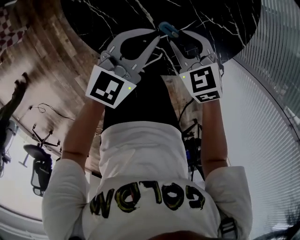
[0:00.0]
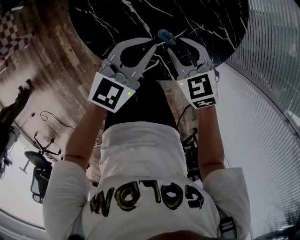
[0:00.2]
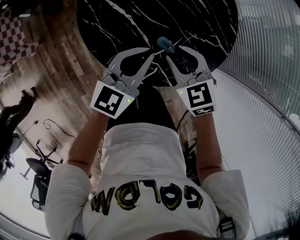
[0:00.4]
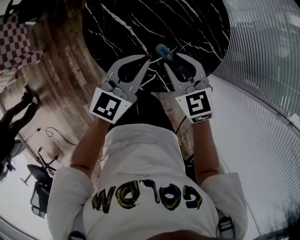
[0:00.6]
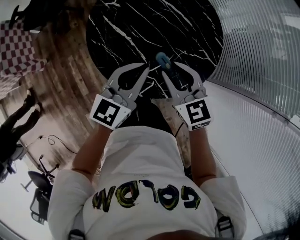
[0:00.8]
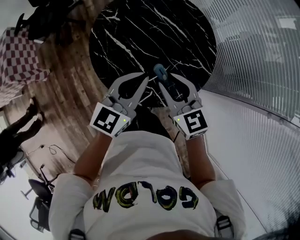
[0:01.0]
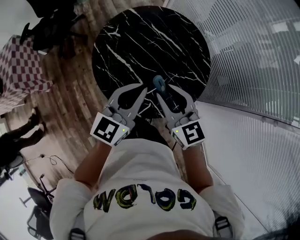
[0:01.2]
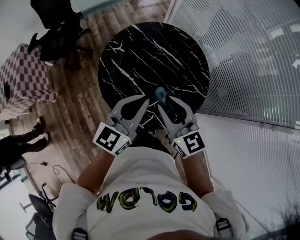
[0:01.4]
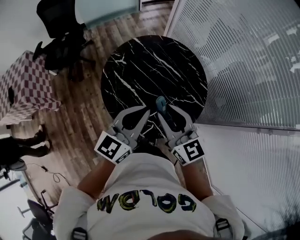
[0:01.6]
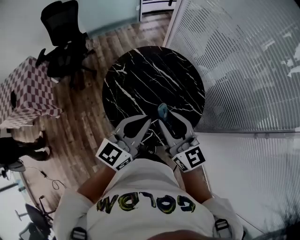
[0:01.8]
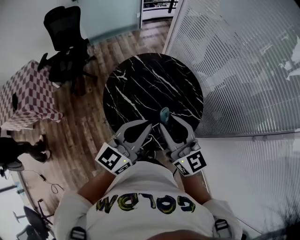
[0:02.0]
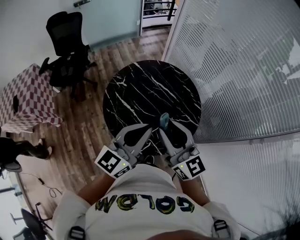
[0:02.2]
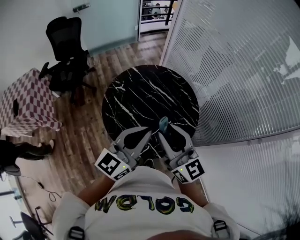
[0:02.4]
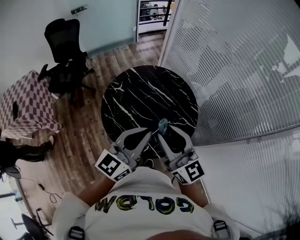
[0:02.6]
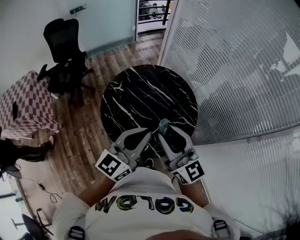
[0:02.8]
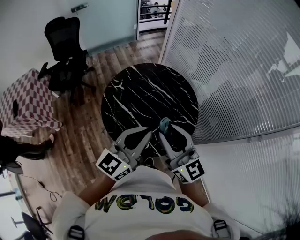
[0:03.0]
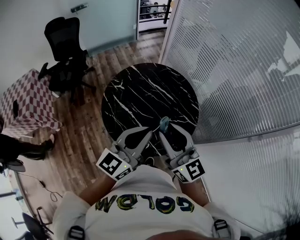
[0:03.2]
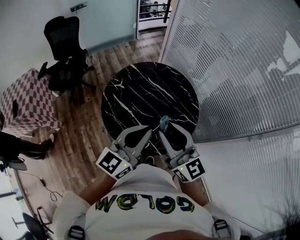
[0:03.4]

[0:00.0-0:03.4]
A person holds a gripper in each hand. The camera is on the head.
0:00.0 to 0:01.6: The two grippers go some 35 cm upward. The right gripper tips its fingers upward by roughly 50 degrees.
0:01.6 to 0:03.4: The two grippers go some 10 cm upward.

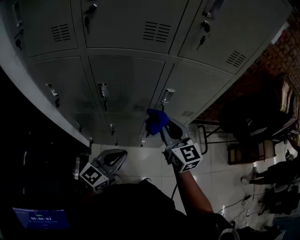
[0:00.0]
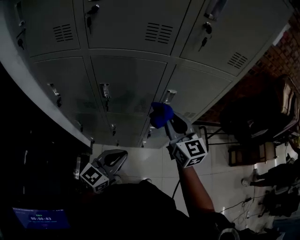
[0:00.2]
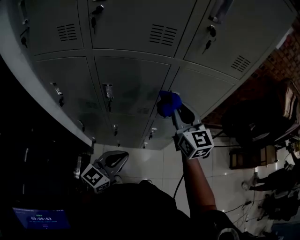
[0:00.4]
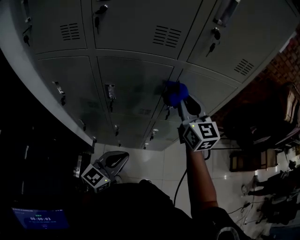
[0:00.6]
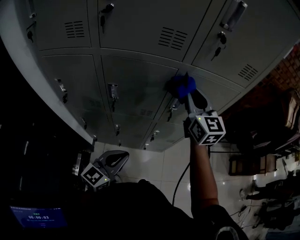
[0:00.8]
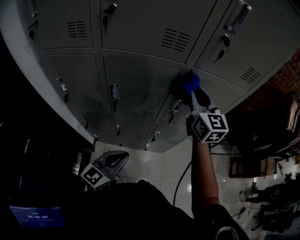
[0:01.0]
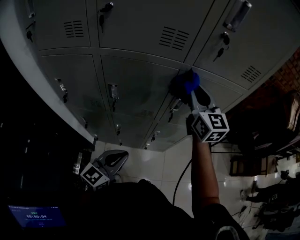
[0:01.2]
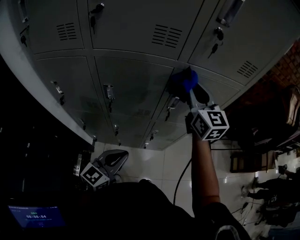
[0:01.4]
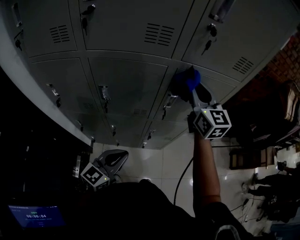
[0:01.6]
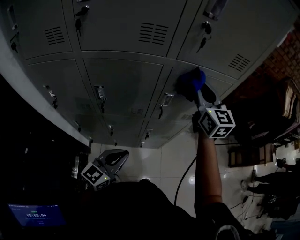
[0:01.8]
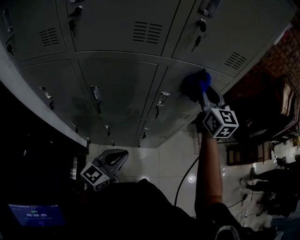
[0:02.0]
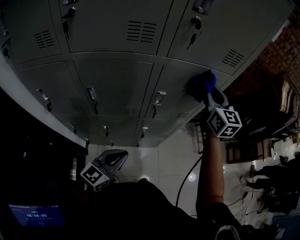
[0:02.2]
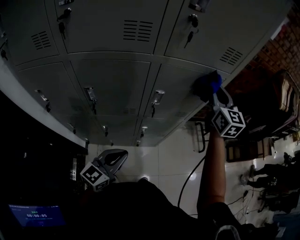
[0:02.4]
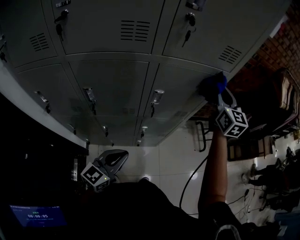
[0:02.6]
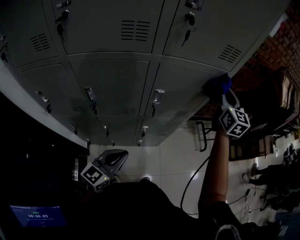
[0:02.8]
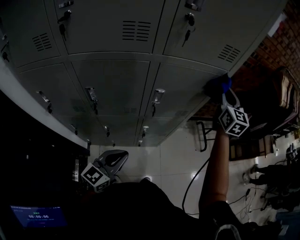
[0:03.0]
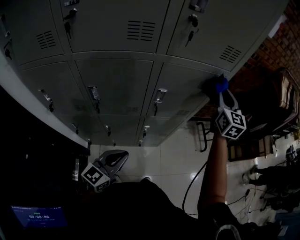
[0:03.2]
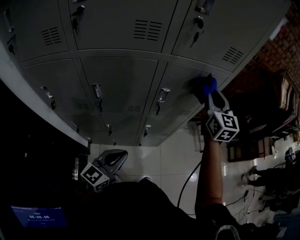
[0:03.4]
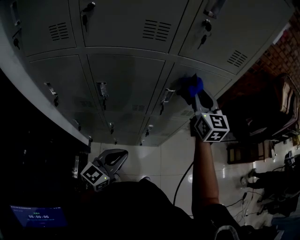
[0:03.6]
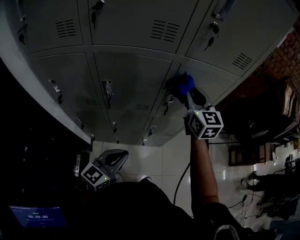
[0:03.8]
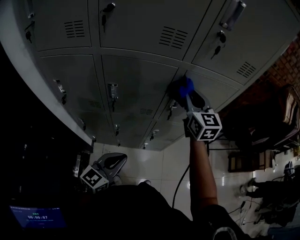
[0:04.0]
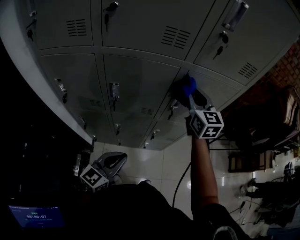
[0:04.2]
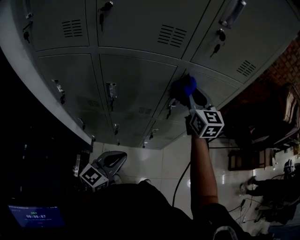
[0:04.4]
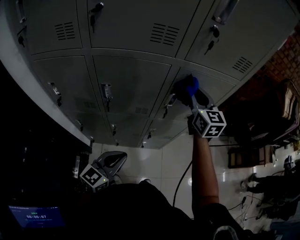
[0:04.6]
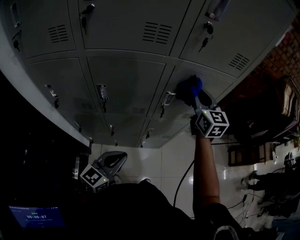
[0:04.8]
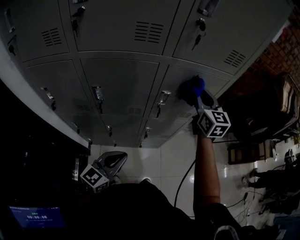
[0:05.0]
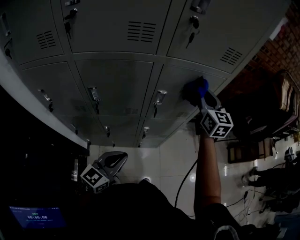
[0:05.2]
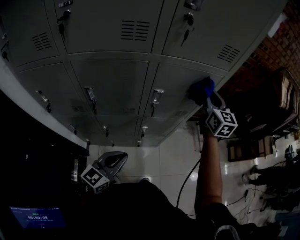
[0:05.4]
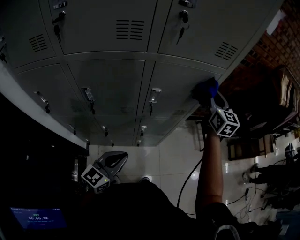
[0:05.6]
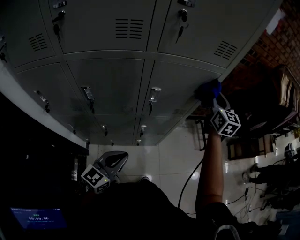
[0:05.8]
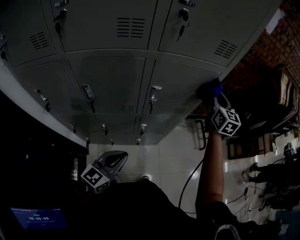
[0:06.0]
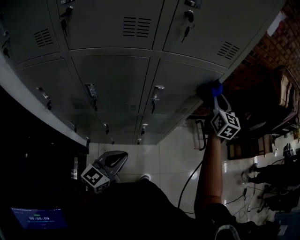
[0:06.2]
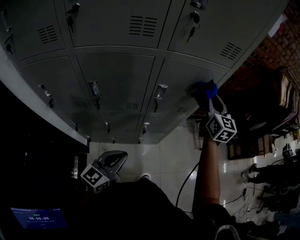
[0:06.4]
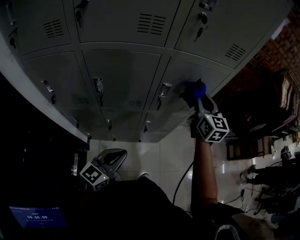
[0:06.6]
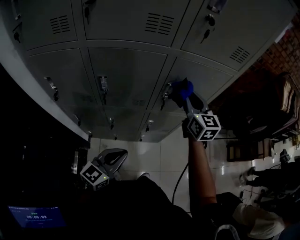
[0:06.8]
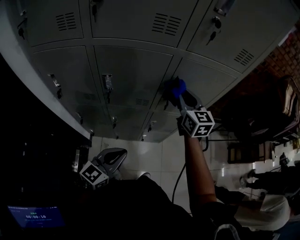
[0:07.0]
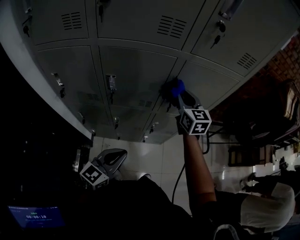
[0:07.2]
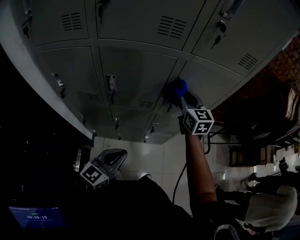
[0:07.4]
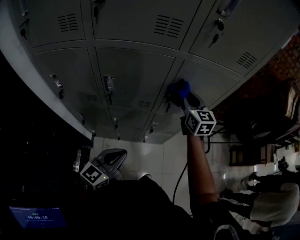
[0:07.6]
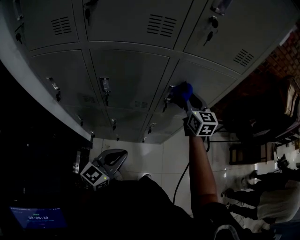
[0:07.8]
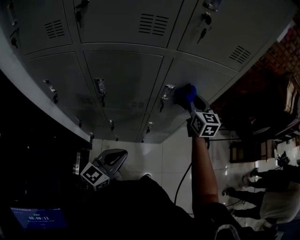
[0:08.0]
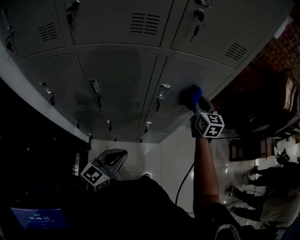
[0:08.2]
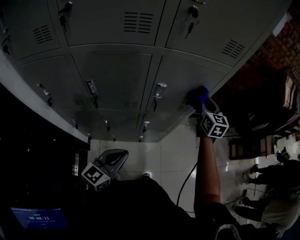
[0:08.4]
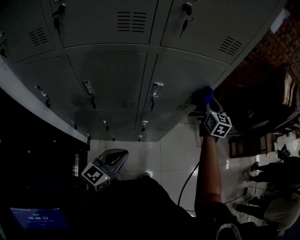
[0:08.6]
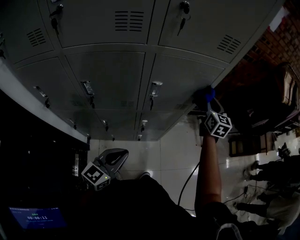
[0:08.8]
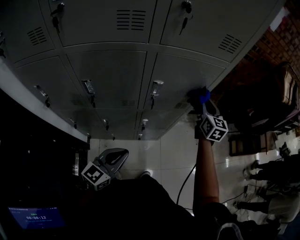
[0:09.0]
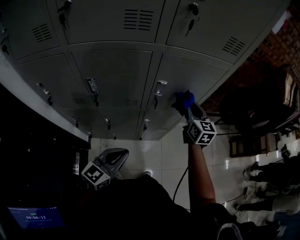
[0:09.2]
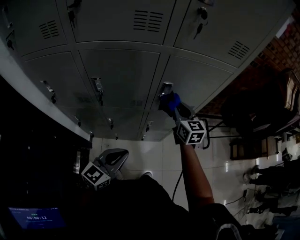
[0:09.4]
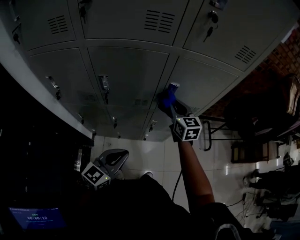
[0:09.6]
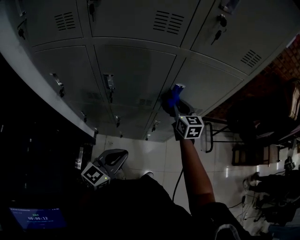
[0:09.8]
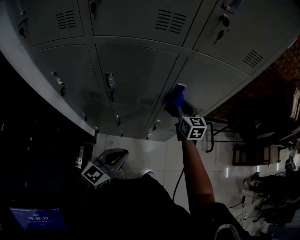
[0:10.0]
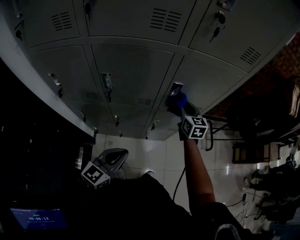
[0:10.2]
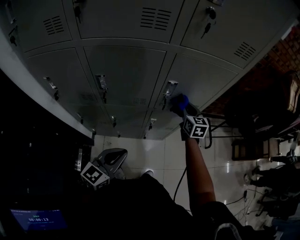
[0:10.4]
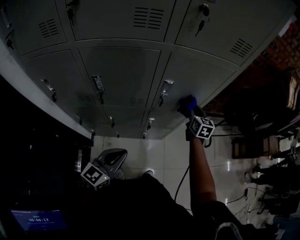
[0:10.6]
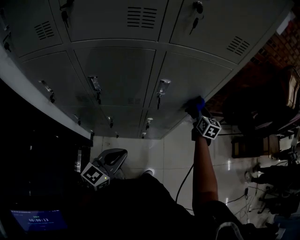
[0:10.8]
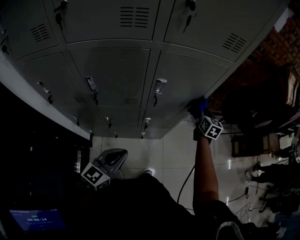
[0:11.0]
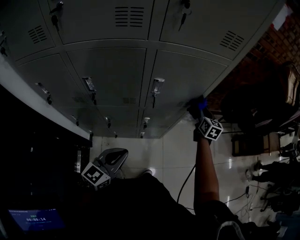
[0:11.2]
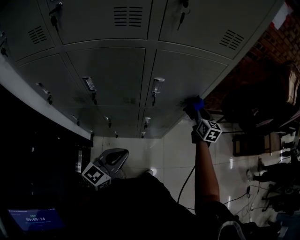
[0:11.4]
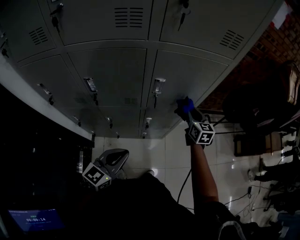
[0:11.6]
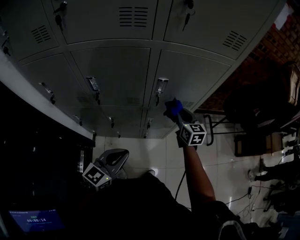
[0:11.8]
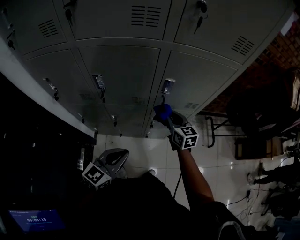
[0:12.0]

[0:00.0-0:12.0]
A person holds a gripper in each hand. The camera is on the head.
0:00.0 to 0:01.6: The right gripper shifts approximately 20 cm forward and upward.
0:01.6 to 0:03.0: The right gripper goes approximately 20 cm to the right, and swivels approximately 20 degrees.
0:03.0 to 0:04.4: The right gripper shifts some 20 cm to the left, and changes its angle by roughly 20 degrees. The left gripper is displaced to the left by approximately 5 cm.
0:04.4 to 0:06.0: The left gripper moves to the right, approximately 5 cm. The right gripper shifts roughly 20 cm to the right, and swivels about 20 degrees.
0:06.0 to 0:07.6: The right gripper moves to the left, some 20 cm, and turns by some 20 degrees; the left gripper is displaced to the left by roughly 5 cm.
0:07.6 to 0:09.0: The left gripper travels to the right by roughly 5 cm. The right gripper moves to the right, approximately 20 cm.
0:09.0 to 0:10.4: The right gripper heads to the left and downward, covering about 15 cm.
0:10.4 to 0:12.0: The right gripper goes about 10 cm backward, and moves some 15 cm to the right and comes back.

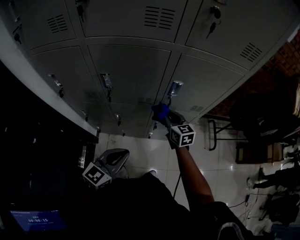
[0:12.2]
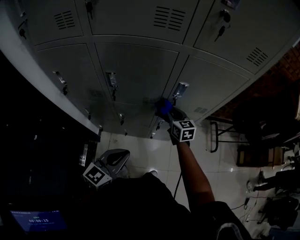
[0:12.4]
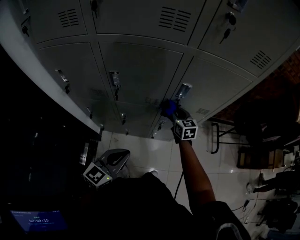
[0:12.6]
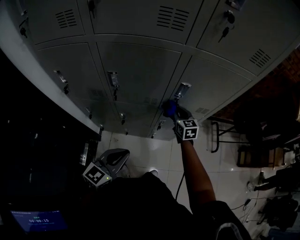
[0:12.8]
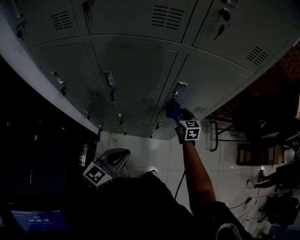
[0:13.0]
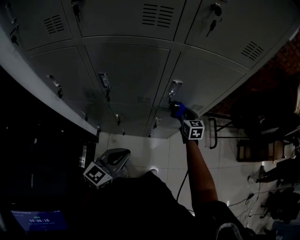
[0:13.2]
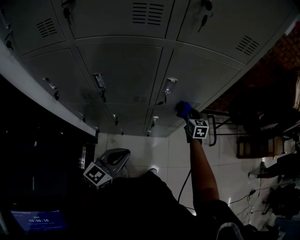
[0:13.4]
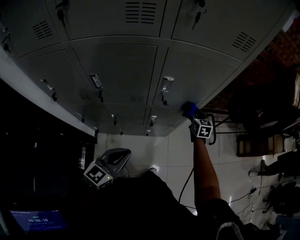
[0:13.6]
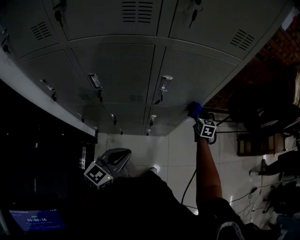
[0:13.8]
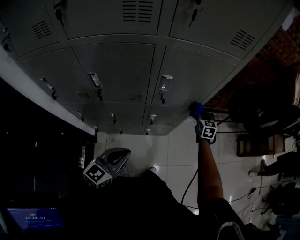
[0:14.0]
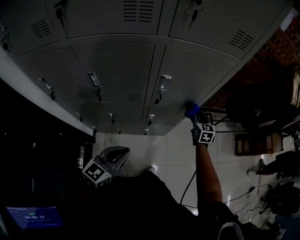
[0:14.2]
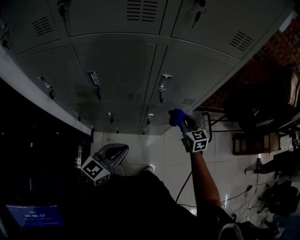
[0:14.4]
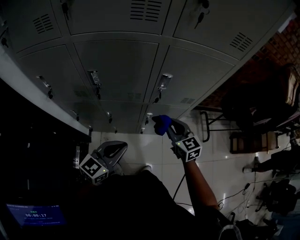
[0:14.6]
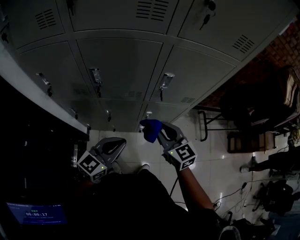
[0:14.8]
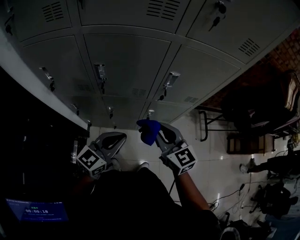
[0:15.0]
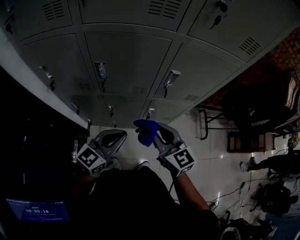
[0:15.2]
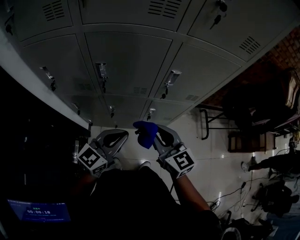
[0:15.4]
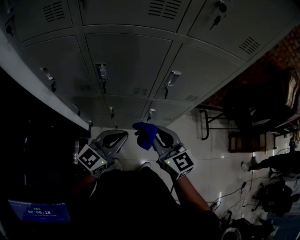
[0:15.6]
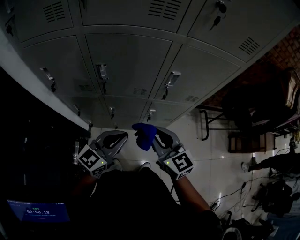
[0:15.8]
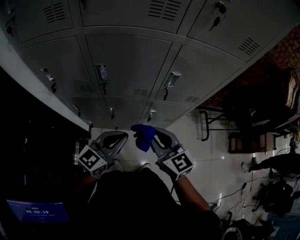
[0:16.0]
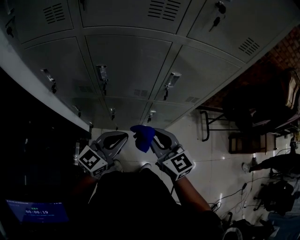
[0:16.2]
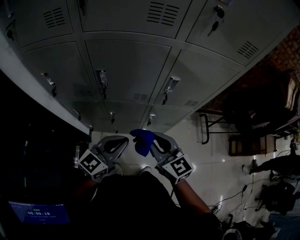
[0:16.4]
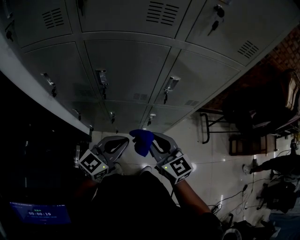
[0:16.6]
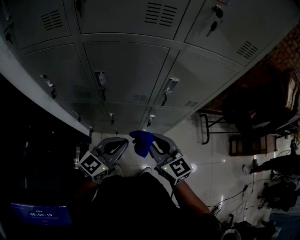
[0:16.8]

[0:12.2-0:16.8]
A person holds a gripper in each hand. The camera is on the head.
0:12.2 to 0:13.8: The right gripper heads to the right, covering approximately 25 cm, and swivels roughly 30 degrees.
0:13.8 to 0:15.2: The right gripper heads to the left, backward and upward, covering approximately 40 cm, and turns by some 40 degrees. The left gripper moves to the left, some 5 cm.
0:15.2 to 0:16.8: The grippers stay close to where they were, moving slightly.

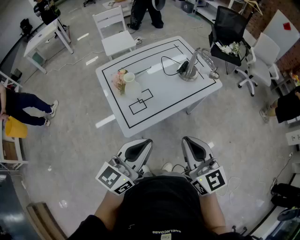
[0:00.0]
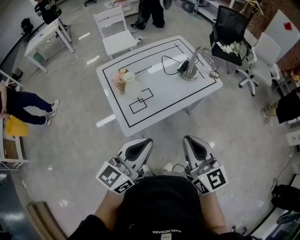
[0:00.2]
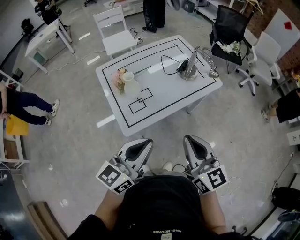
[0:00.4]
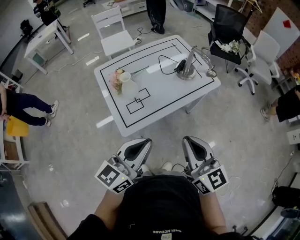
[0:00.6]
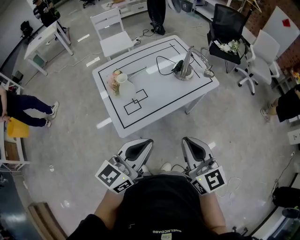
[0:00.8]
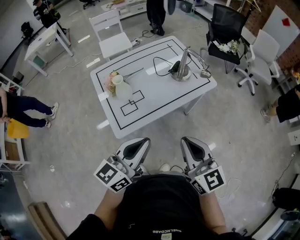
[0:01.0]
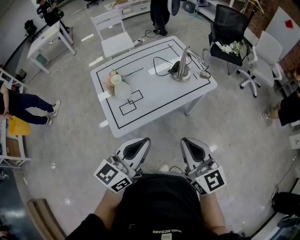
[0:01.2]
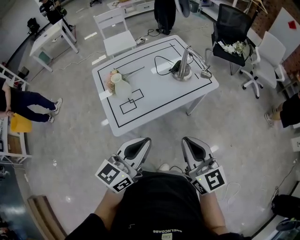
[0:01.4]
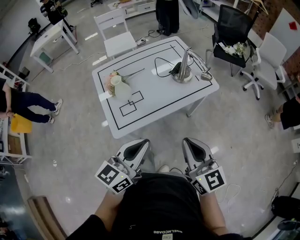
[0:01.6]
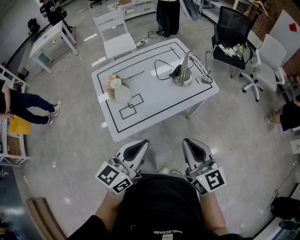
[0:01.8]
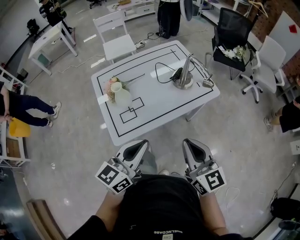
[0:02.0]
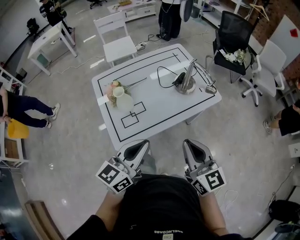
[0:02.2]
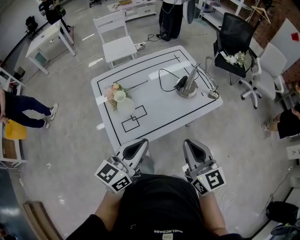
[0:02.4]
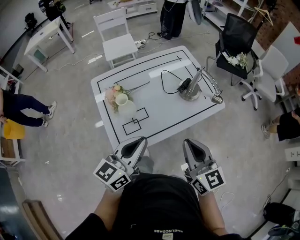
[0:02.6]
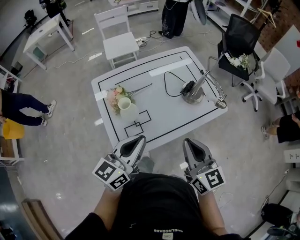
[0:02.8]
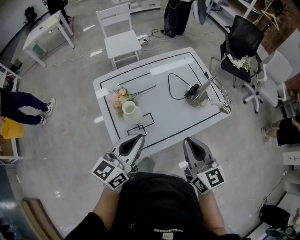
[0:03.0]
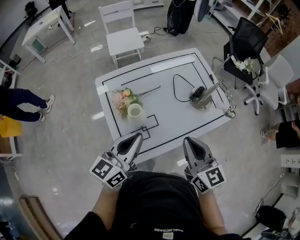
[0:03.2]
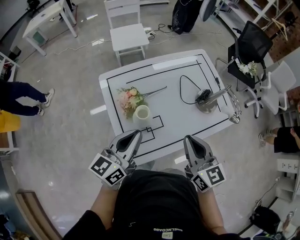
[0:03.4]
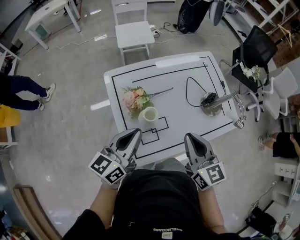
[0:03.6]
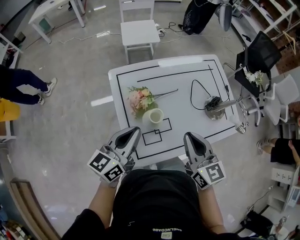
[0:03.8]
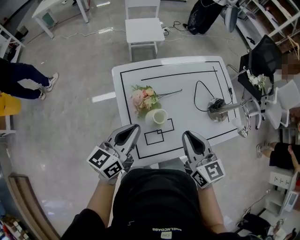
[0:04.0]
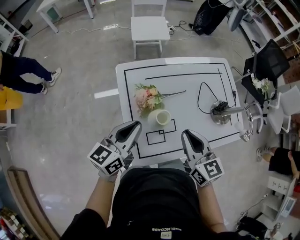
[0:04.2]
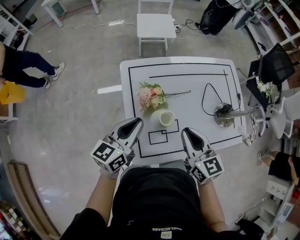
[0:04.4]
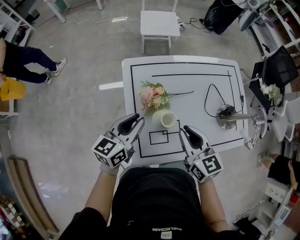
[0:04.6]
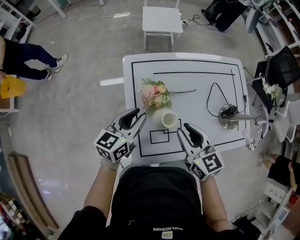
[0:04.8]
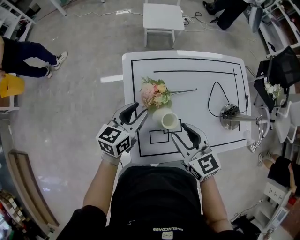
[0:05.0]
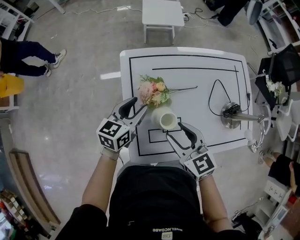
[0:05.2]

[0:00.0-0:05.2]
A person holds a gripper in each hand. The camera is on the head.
0:00.0 to 0:01.8: Both grippers move to the right, approximately 10 cm.
0:01.8 to 0:03.4: Both grippers move forward and to the left, approximately 30 cm.
0:03.4 to 0:05.2: The left gripper goes approximately 20 cm downward, forward and to the left, swivels some 20 degrees, and opens up; the right gripper moves to the left, downward and forward, approximately 20 cm, changes its angle by some 30 degrees, and opens up.
